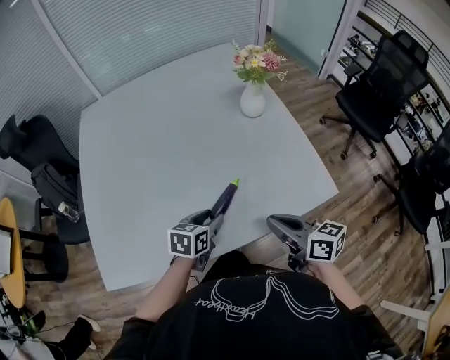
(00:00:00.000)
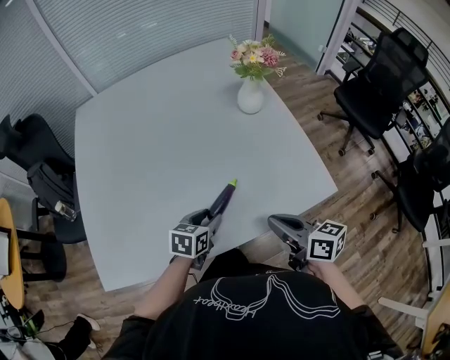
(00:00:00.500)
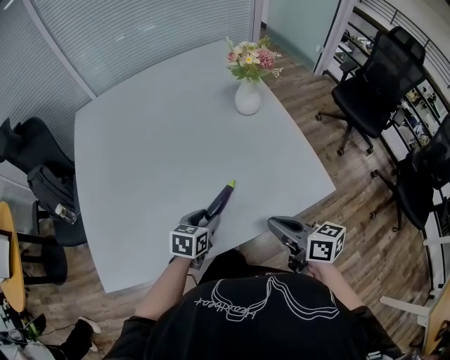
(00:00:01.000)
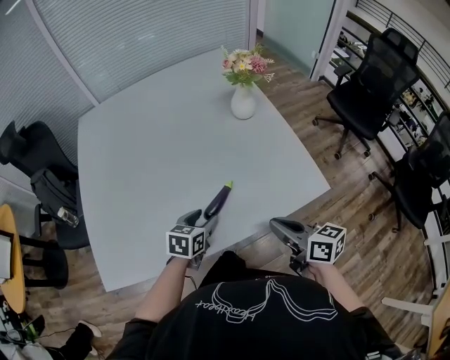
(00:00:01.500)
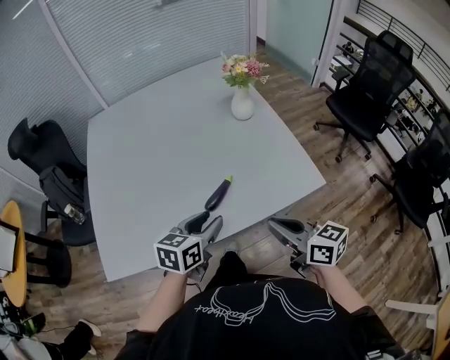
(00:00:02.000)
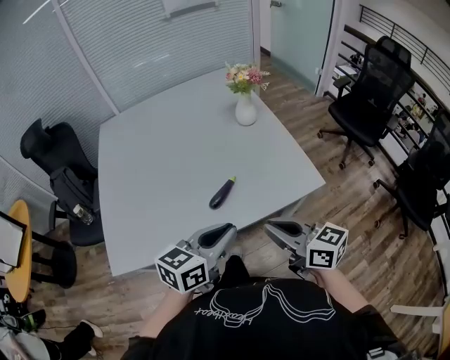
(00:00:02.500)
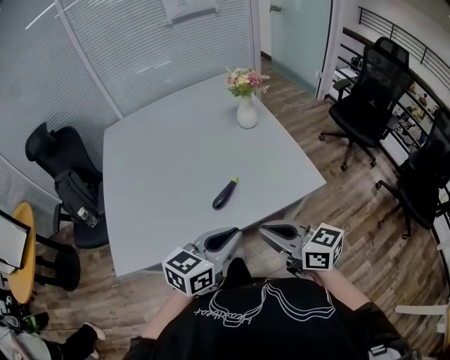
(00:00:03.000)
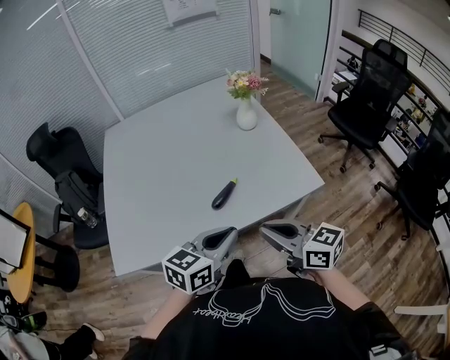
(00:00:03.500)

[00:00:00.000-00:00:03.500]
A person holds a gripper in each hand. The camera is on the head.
00:00:00.000 to 00:00:02.000: The right gripper shifts some 10 cm backward, while the left gripper travels upward and backward by roughly 15 cm.
00:00:02.000 to 00:00:03.500: The right gripper heads backward and upward, covering roughly 10 cm; the left gripper heads backward and upward, covering roughly 15 cm, and closes.

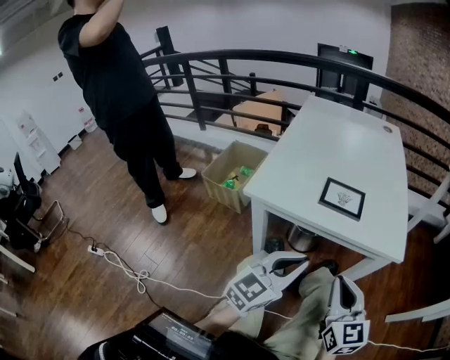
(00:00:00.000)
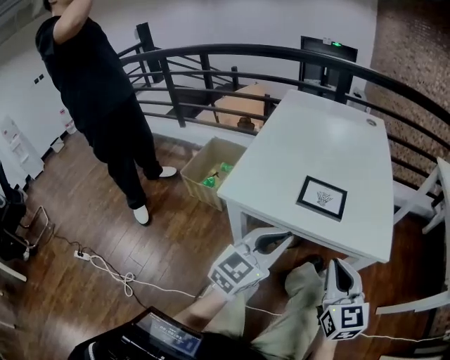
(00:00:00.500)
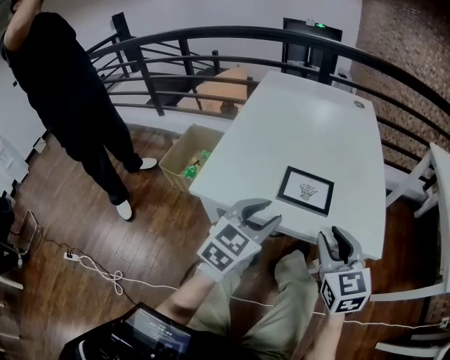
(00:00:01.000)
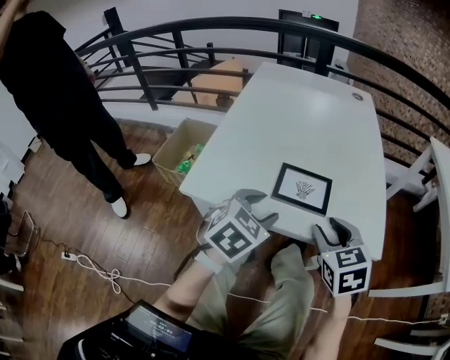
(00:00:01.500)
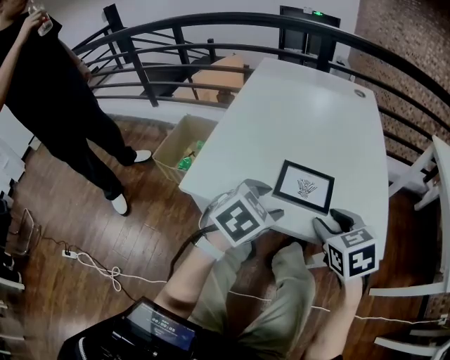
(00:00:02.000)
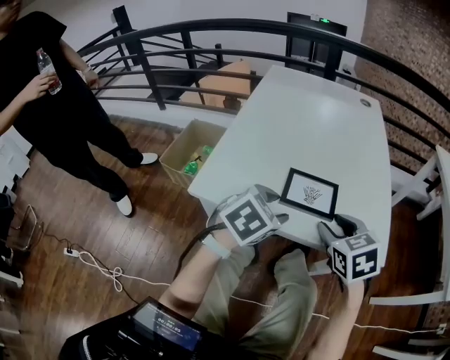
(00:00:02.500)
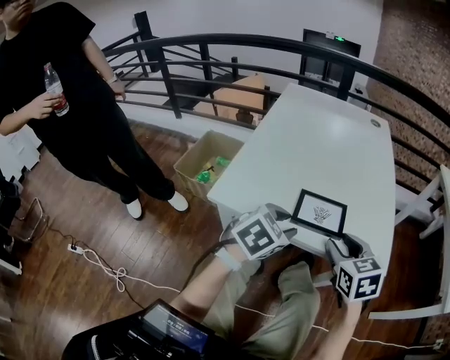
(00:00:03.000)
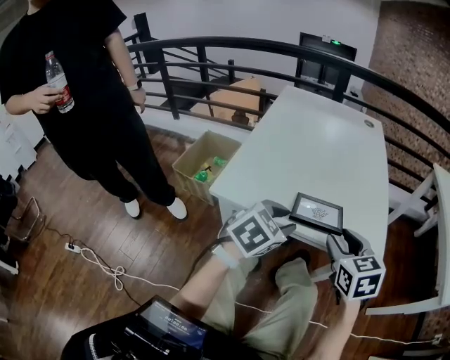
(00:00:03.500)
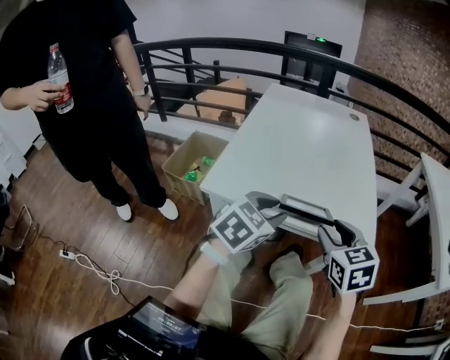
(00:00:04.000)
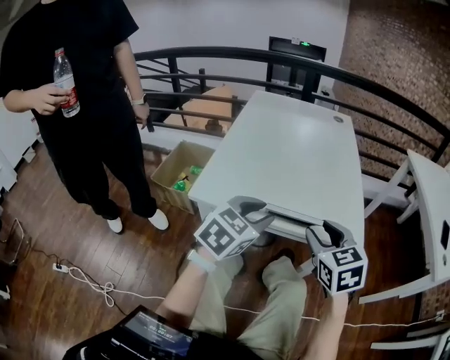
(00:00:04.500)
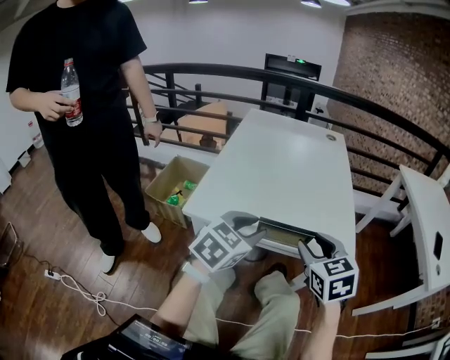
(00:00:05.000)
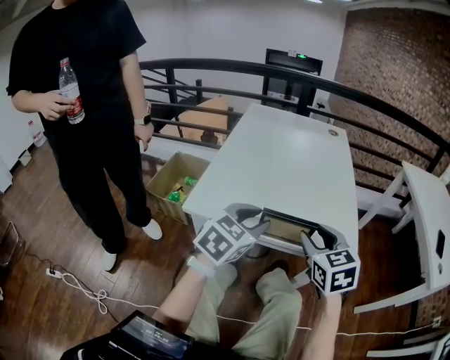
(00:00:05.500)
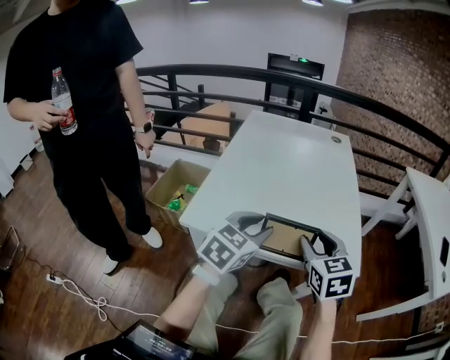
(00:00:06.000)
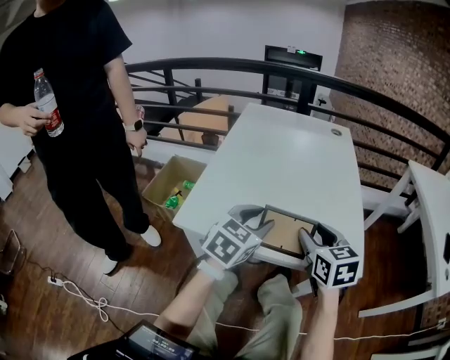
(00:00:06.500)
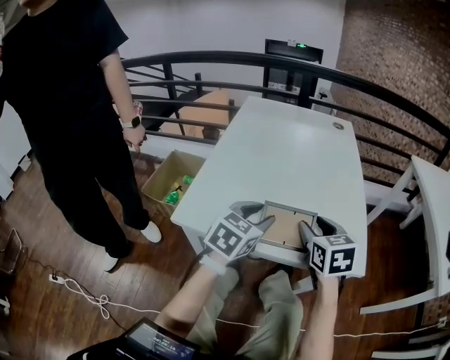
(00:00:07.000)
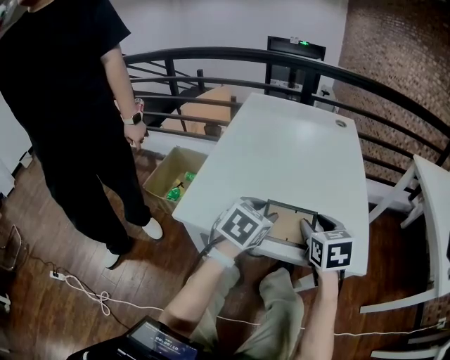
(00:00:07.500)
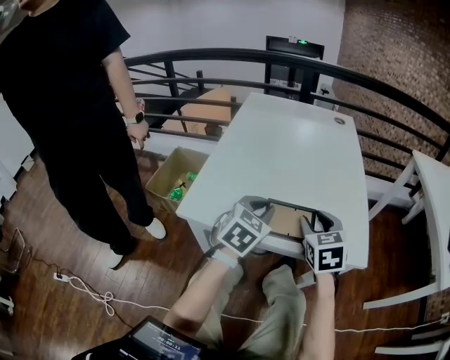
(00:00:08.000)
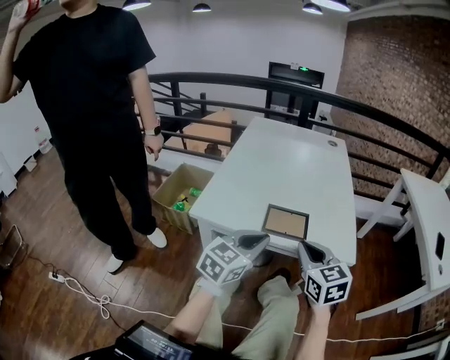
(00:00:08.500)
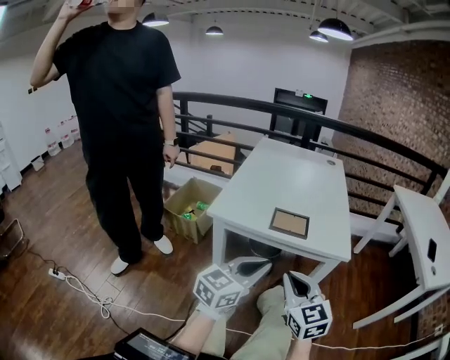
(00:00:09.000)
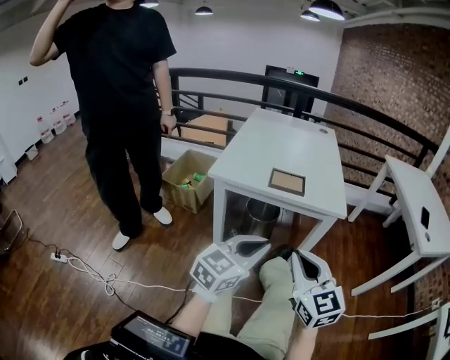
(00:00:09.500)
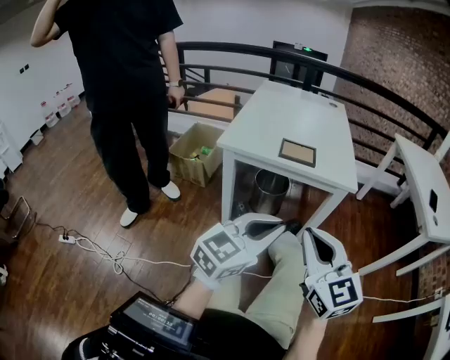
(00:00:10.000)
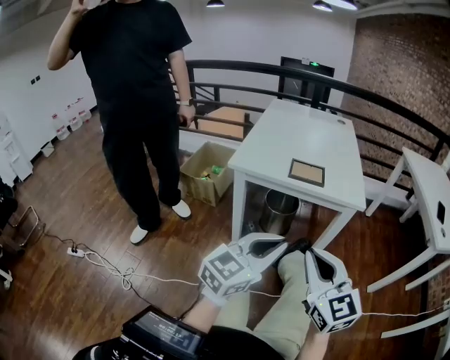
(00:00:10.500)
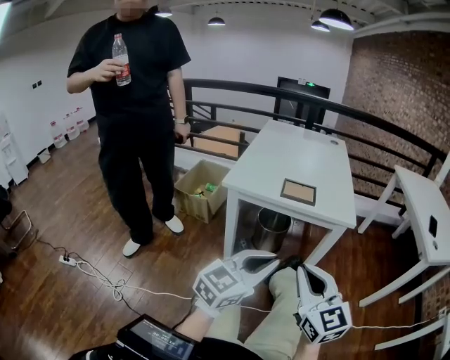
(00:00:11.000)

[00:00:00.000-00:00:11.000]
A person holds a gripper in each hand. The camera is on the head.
00:00:00.000 to 00:00:02.000: Both grippers move forward, roughly 20 cm. The right gripper angles its fingers downward, by roughly 30 degrees, and opens, while the left gripper angles its fingers downward, by approximately 40 degrees, and opens.
00:00:02.000 to 00:00:03.500: The two grippers go roughly 5 cm backward. The left gripper closes its fingers.
00:00:03.500 to 00:00:05.500: The left gripper is displaced upward by approximately 5 cm.
00:00:05.500 to 00:00:07.500: The grippers both shift forward and downward by some 10 cm.
00:00:07.500 to 00:00:09.000: The two grippers go about 30 cm backward. The left gripper points its fingers some 30 degrees further upward, and closes its fingers. Meanwhile the right gripper turns by about 30 degrees, and closes its fingers.
00:00:09.000 to 00:00:11.000: The two grippers go roughly 15 cm backward.

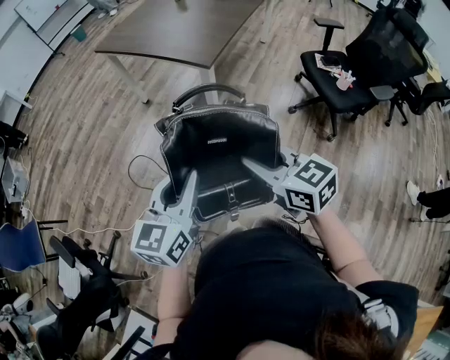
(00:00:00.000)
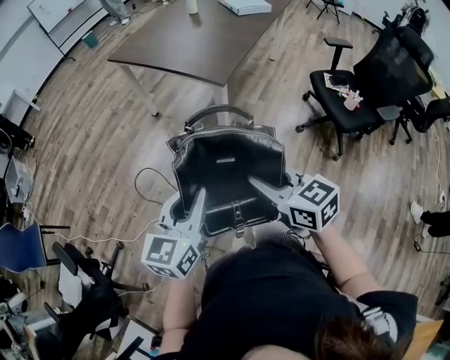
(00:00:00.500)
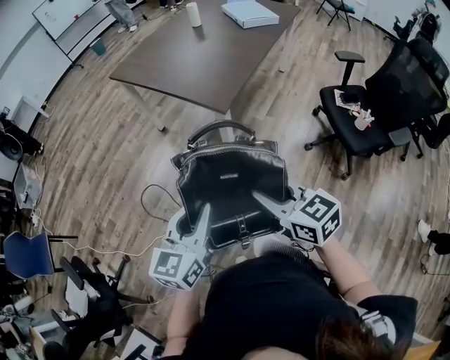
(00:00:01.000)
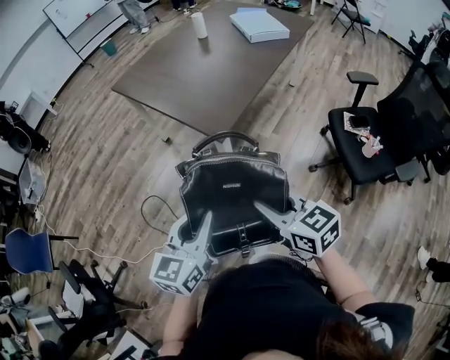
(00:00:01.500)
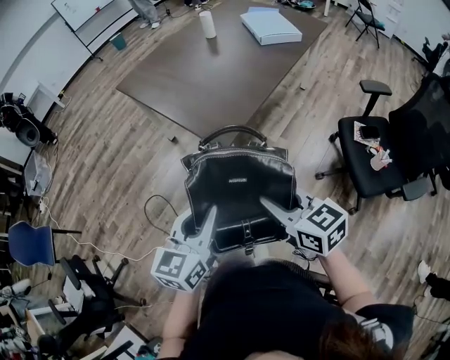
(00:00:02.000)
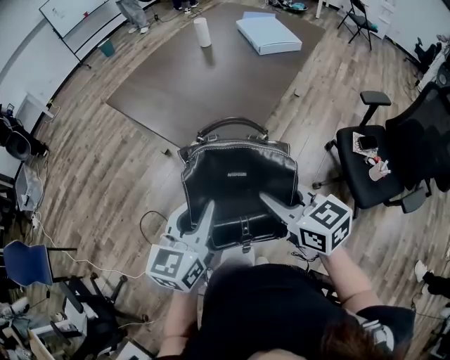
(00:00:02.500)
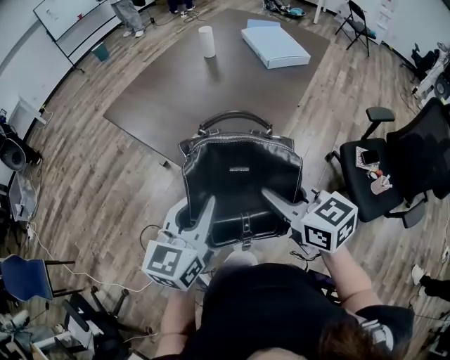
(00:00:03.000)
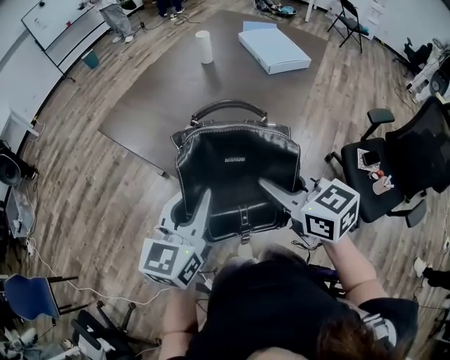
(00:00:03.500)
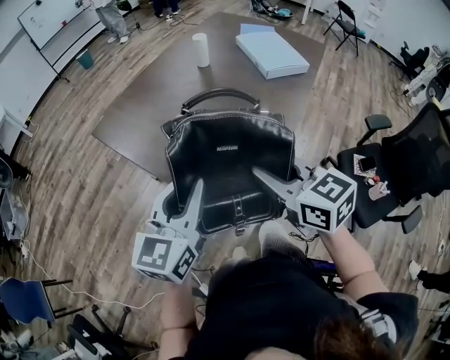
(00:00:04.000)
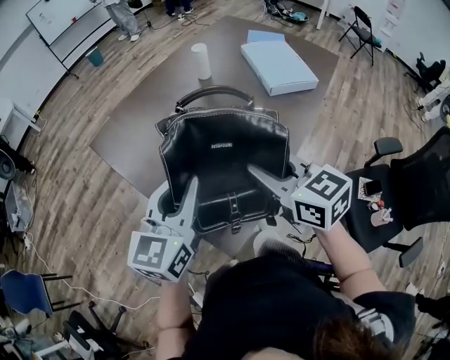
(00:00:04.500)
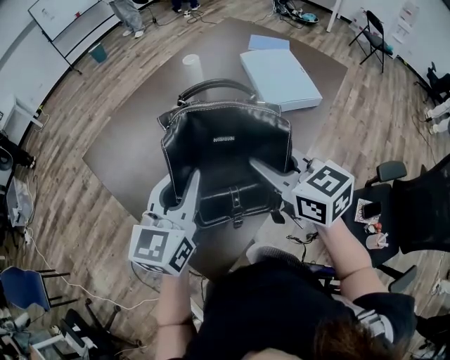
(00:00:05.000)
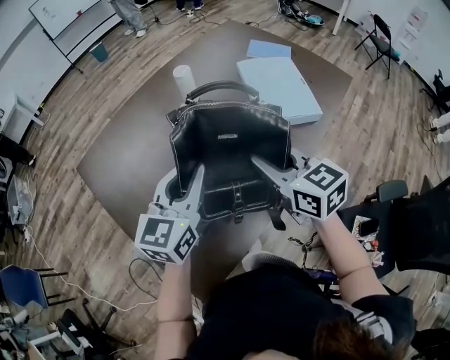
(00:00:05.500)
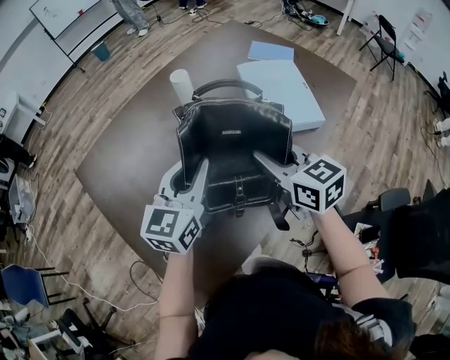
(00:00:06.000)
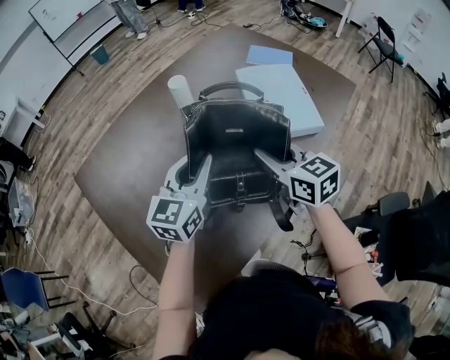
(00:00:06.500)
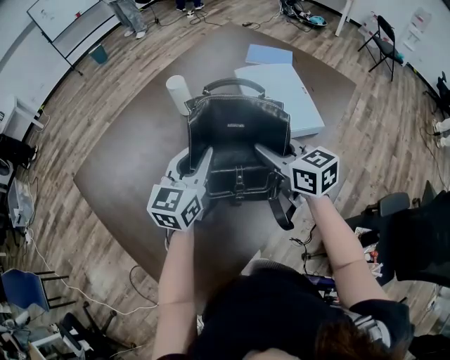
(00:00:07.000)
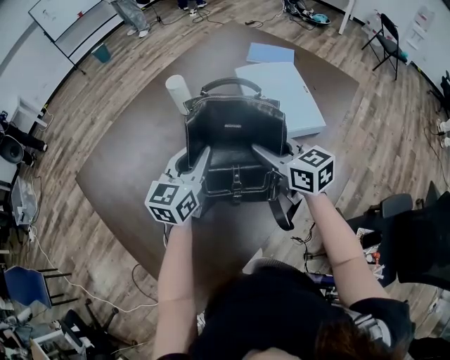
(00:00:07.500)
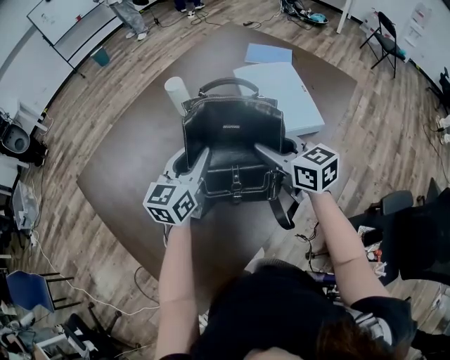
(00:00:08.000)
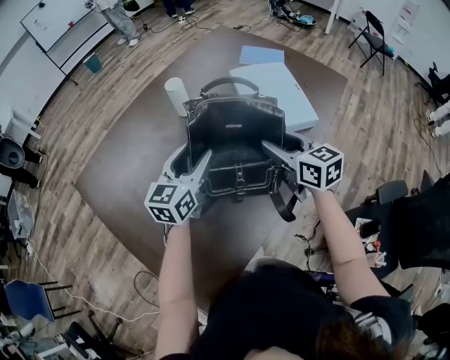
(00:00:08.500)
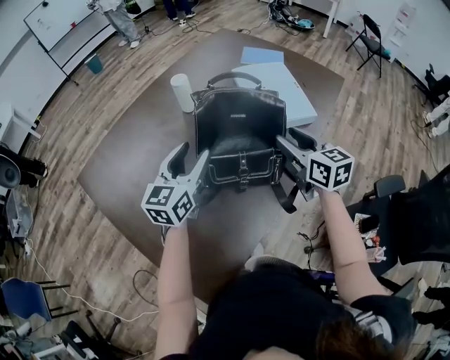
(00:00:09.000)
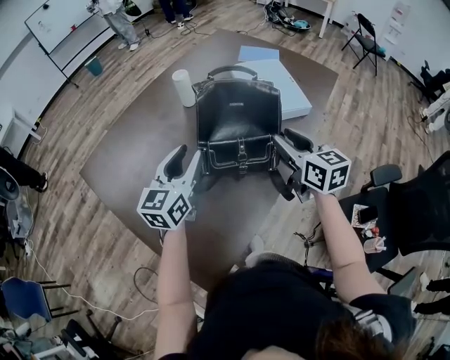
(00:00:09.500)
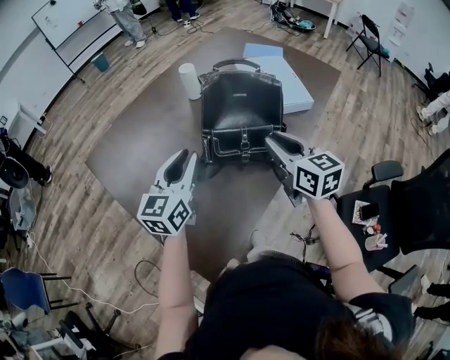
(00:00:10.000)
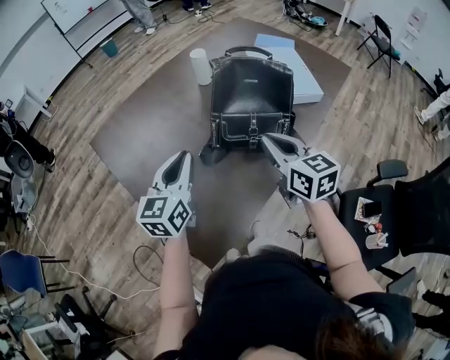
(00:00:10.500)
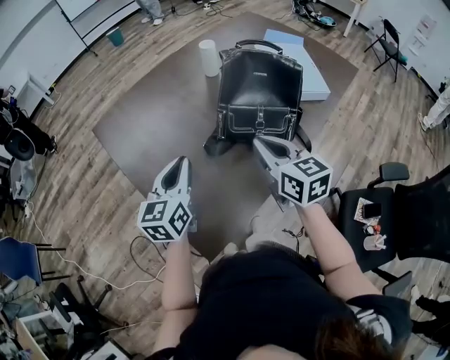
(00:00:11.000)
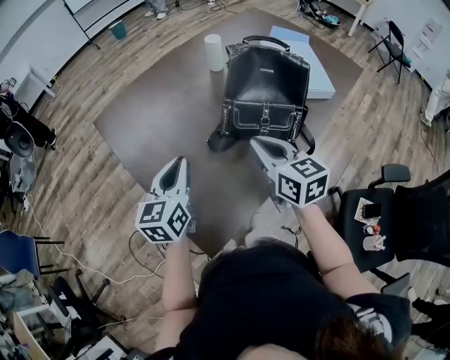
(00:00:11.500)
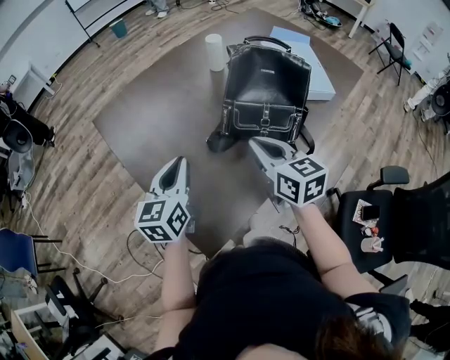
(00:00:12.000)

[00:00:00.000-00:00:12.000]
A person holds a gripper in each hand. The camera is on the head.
00:00:00.000 to 00:00:02.000: The grippers both shift forward and to the right by approximately 25 cm.
00:00:02.000 to 00:00:04.000: Both grippers travel together forward, some 35 cm.
00:00:04.000 to 00:00:06.000: The grippers both shift forward and to the right by approximately 40 cm.
00:00:06.000 to 00:00:08.000: The right gripper moves forward, about 5 cm, and opens; the left gripper shifts about 10 cm forward and downward.
00:00:08.000 to 00:00:10.000: The left gripper goes approximately 20 cm backward and to the left, and opens, then closes again, while the right gripper goes roughly 15 cm backward.
00:00:10.000 to 00:00:12.000: The right gripper travels to the left by about 10 cm, and closes its fingers, while the left gripper goes approximately 10 cm to the left and backward.
